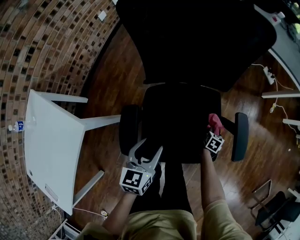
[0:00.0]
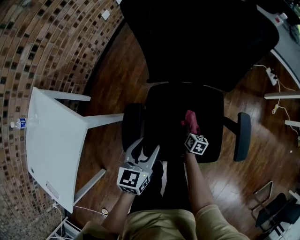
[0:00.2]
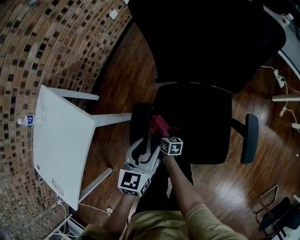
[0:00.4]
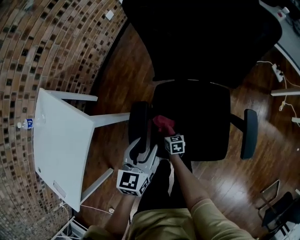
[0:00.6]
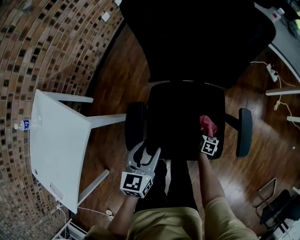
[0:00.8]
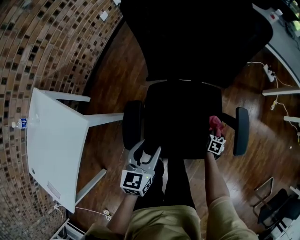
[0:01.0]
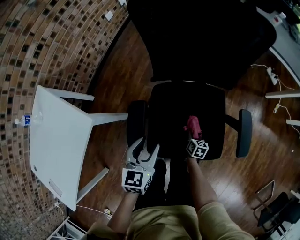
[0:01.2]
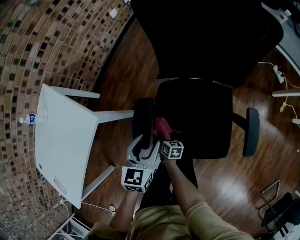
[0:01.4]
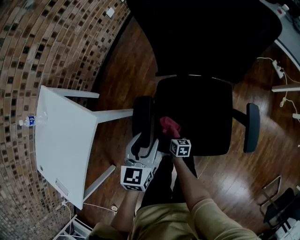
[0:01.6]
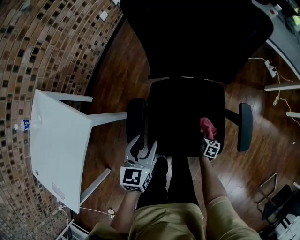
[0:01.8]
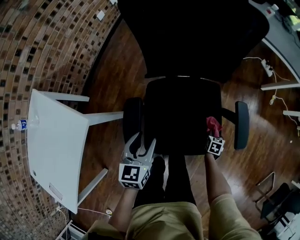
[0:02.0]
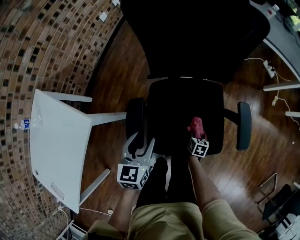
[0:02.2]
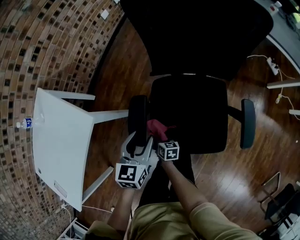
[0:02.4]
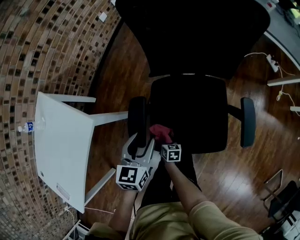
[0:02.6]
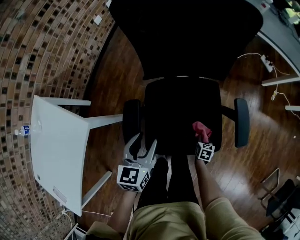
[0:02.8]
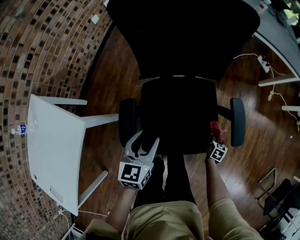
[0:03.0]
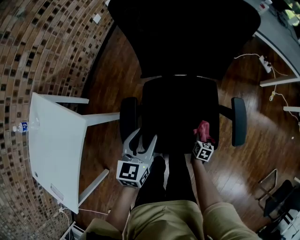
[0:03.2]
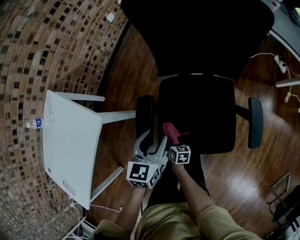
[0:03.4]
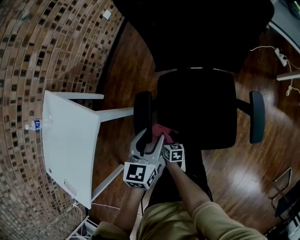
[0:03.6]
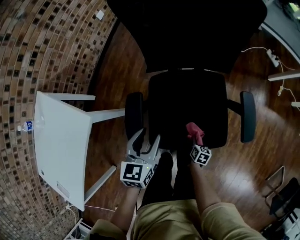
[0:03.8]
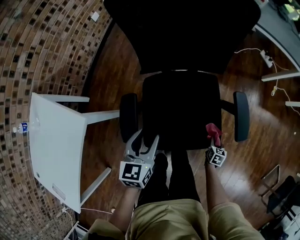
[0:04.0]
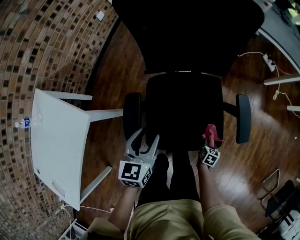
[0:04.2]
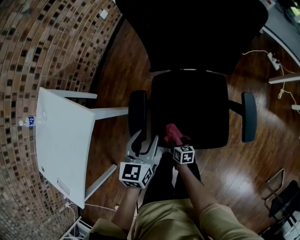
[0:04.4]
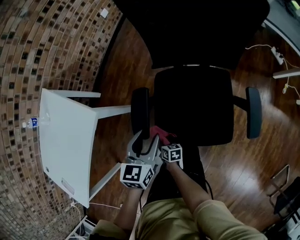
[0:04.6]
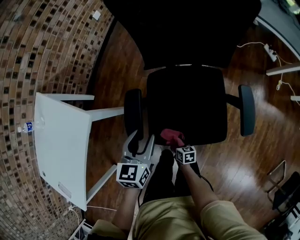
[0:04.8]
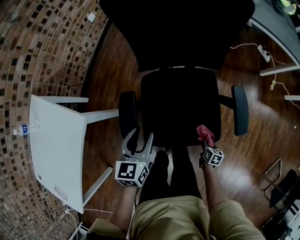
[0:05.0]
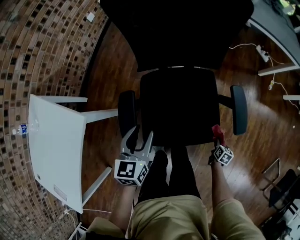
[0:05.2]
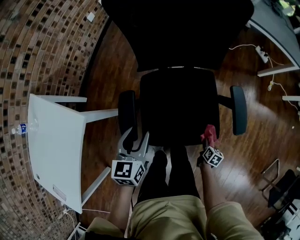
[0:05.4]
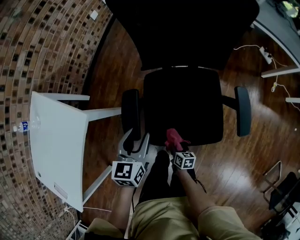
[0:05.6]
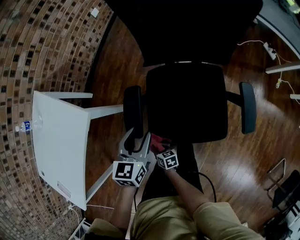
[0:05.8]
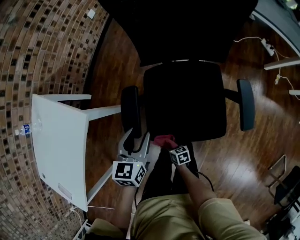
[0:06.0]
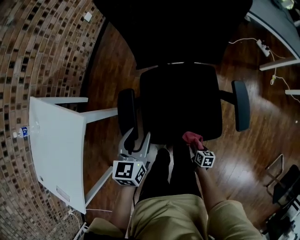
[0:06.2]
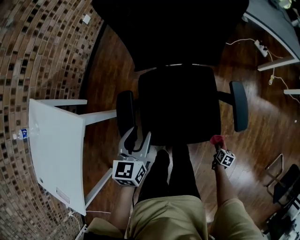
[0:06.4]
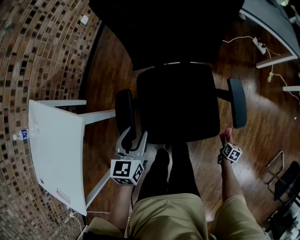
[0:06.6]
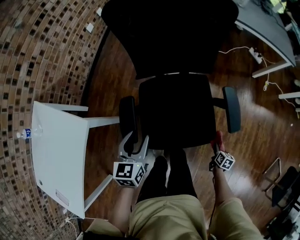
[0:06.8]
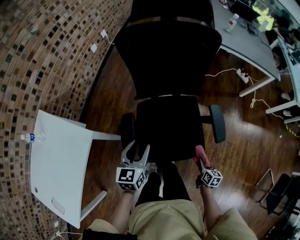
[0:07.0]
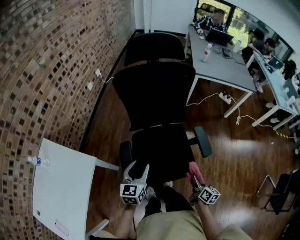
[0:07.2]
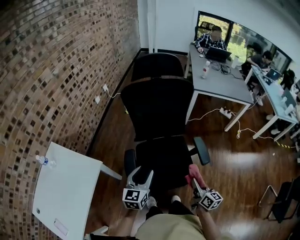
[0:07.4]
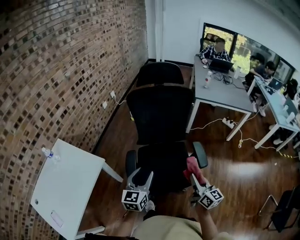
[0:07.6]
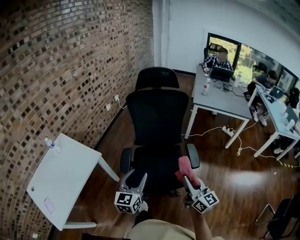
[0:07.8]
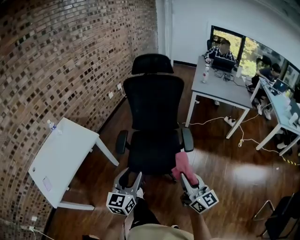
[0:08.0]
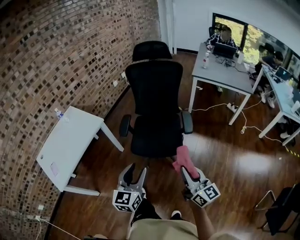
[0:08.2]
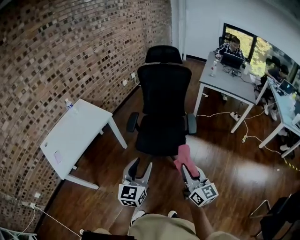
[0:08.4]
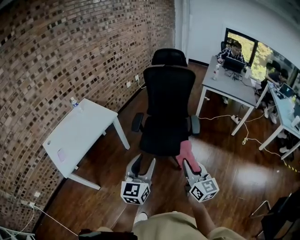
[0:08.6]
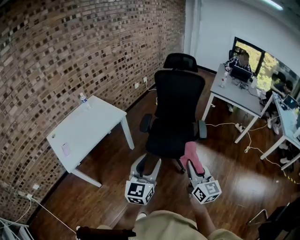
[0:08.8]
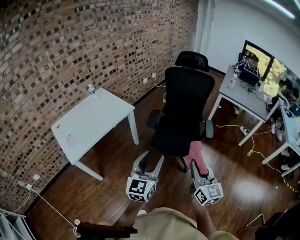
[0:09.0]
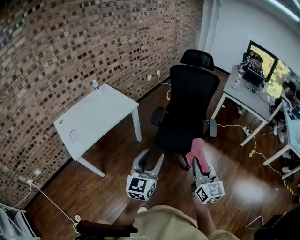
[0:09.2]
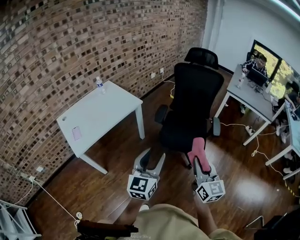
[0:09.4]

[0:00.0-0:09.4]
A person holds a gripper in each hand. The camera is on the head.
0:00.0 to 0:01.6: The left gripper shifts by approximately 5 cm, while the right gripper moves some 35 cm, and swivels about 40 degrees.
0:01.6 to 0:03.2: The left gripper shifts by roughly 5 cm. The right gripper rotates roughly 30 degrees.
0:03.2 to 0:04.8: The right gripper ends up roughly 20 cm from where it was, and turns by about 30 degrees, while the left gripper moves approximately 5 cm.
0:06.2 to 0:07.8: The left gripper travels upward and backward by approximately 30 cm, and swivels some 30 degrees. The right gripper travels upward by some 60 cm, and angles its fingers upward, by some 60 degrees.
0:07.8 to 0:09.4: The right gripper moves backward and to the left, approximately 25 cm. Meanwhile the left gripper shifts roughly 30 cm backward.

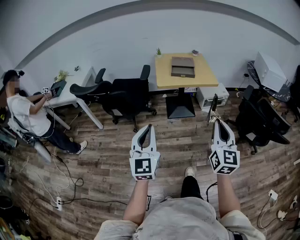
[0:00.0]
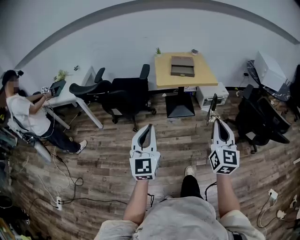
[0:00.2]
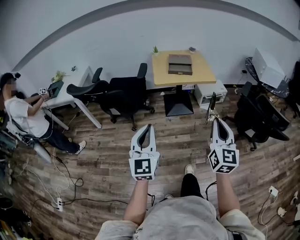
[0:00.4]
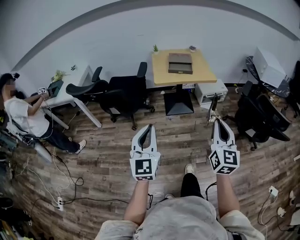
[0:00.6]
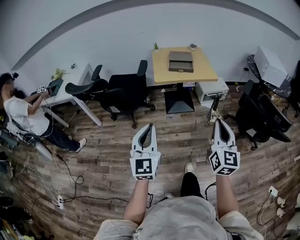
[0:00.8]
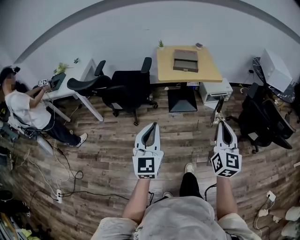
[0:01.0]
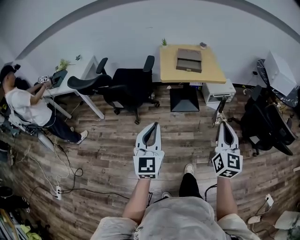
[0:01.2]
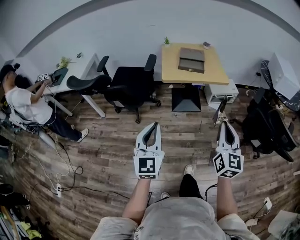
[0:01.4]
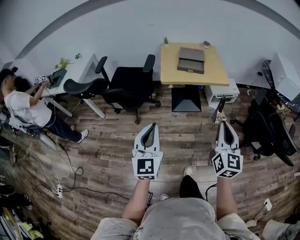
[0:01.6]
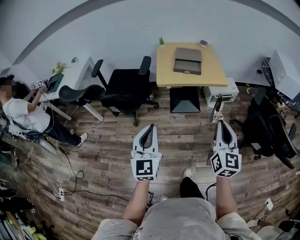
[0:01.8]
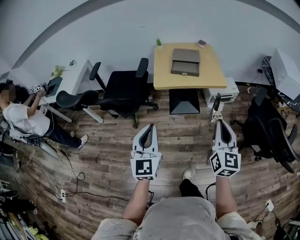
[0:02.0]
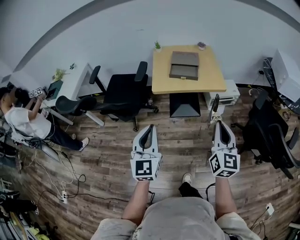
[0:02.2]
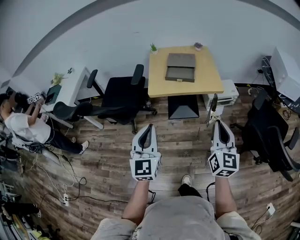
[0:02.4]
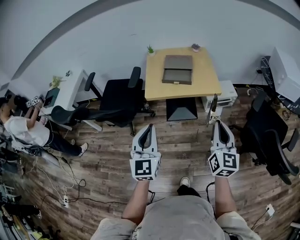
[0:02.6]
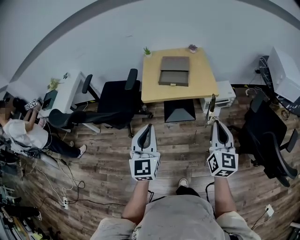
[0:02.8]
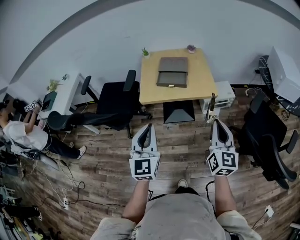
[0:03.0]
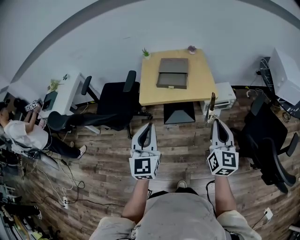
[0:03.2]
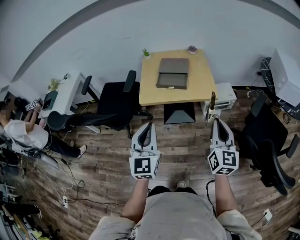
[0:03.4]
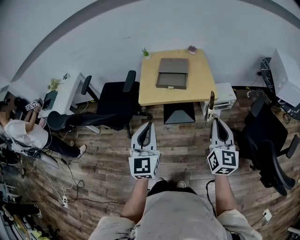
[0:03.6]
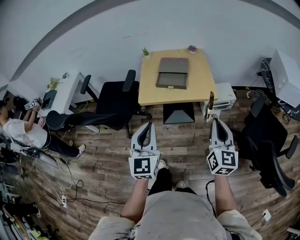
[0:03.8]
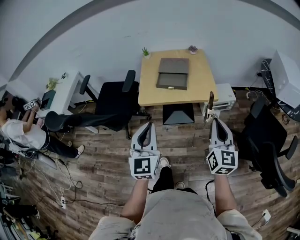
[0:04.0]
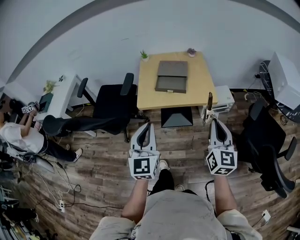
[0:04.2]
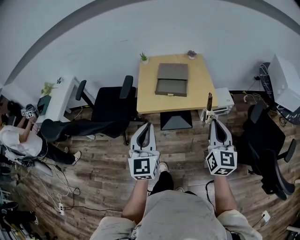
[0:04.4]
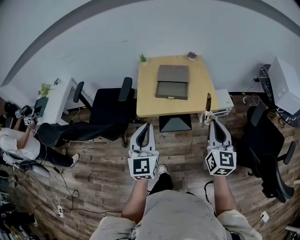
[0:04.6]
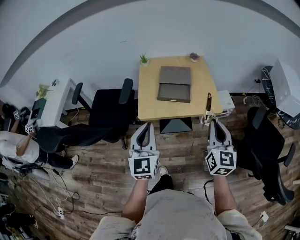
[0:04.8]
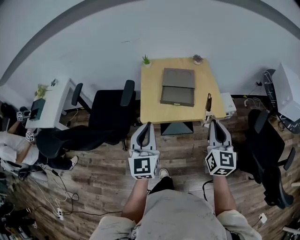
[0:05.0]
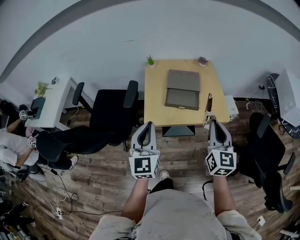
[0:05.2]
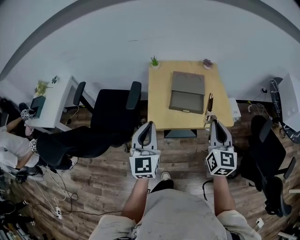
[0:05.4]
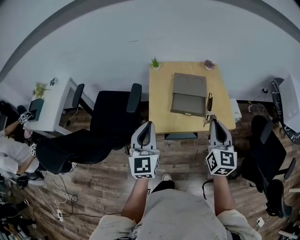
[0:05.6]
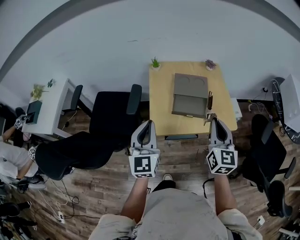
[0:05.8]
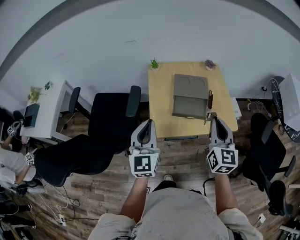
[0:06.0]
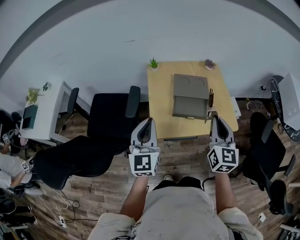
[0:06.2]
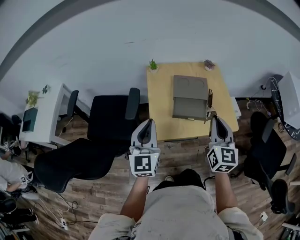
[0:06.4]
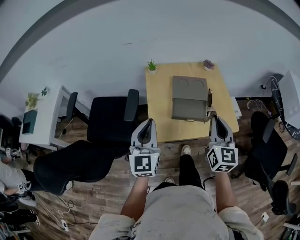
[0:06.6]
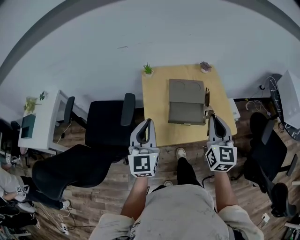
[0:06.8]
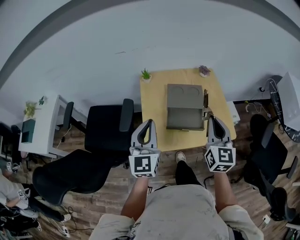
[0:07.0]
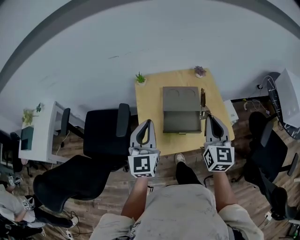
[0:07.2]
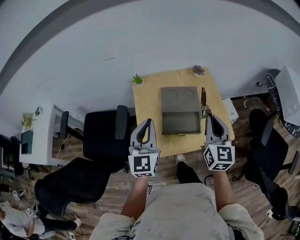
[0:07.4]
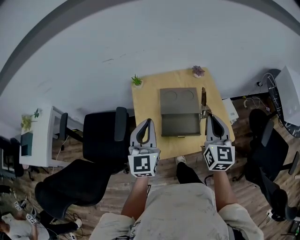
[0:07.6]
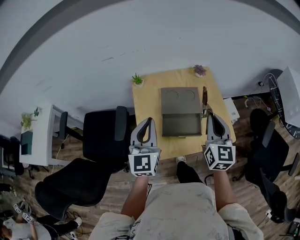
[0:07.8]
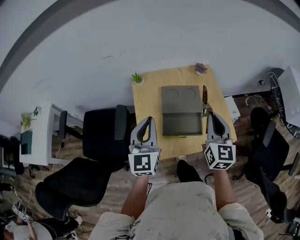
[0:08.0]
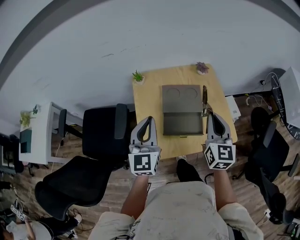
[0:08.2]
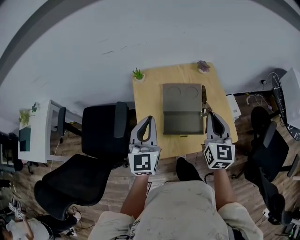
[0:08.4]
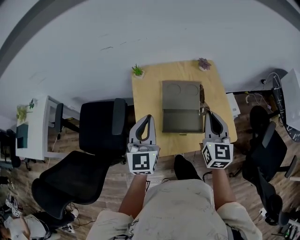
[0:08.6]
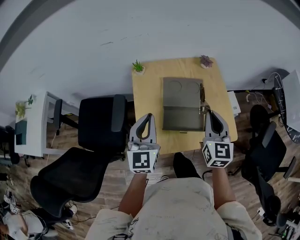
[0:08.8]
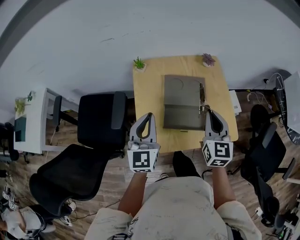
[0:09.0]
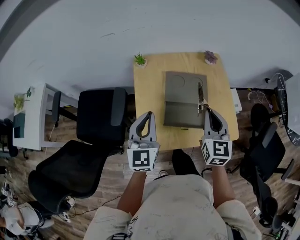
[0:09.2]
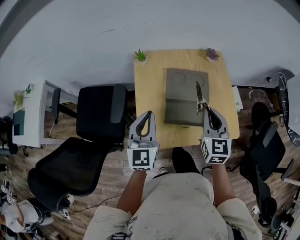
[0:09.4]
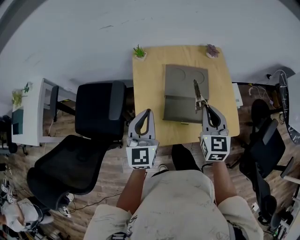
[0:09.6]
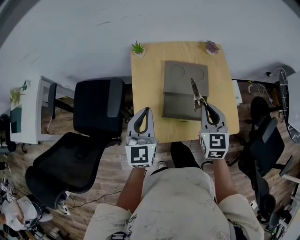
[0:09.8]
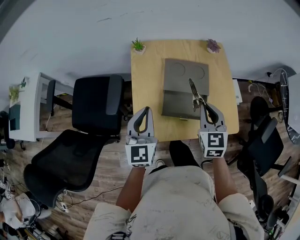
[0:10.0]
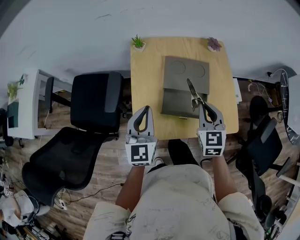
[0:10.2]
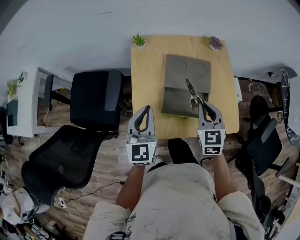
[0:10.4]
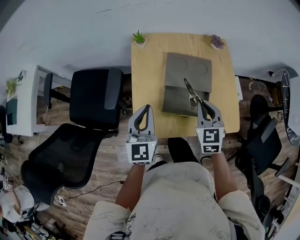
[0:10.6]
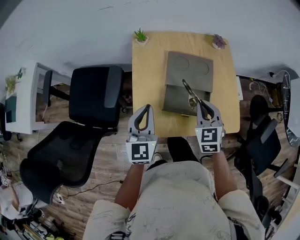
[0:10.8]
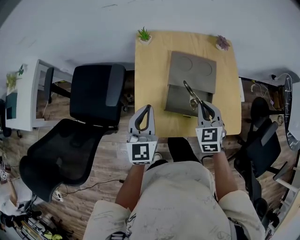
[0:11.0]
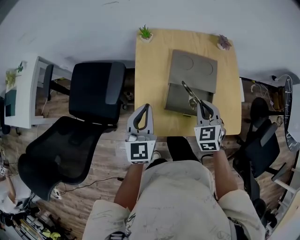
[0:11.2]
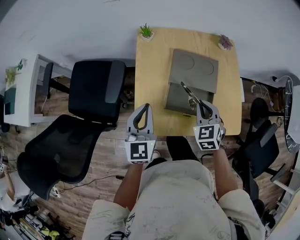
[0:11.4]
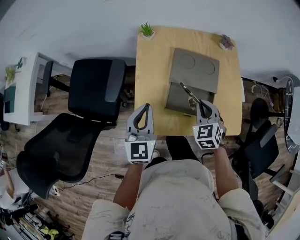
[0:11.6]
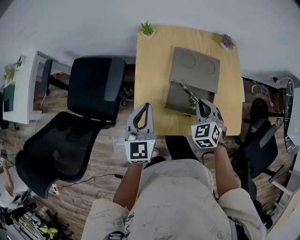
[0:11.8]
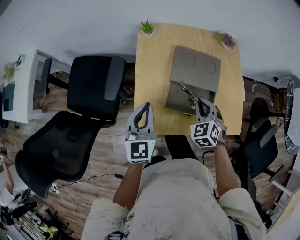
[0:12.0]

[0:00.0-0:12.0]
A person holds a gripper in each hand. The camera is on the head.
0:00.0 to 0:01.6: The two grippers go approximately 10 cm forward.
0:01.6 to 0:03.0: The grippers both shift forward and to the right by about 25 cm.
0:03.0 to 0:04.4: The grippers both shift forward by roughly 10 cm.
0:04.4 to 0:06.0: The grippers both shift forward and to the left by some 30 cm.
0:06.0 to 0:07.6: The left gripper shifts roughly 15 cm forward and to the right. The right gripper shifts some 15 cm forward.
0:07.6 to 0:09.0: The two grippers go some 5 cm downward.
0:09.0 to 0:10.4: Both grippers travel together downward, approximately 5 cm. The right gripper changes its angle by approximately 20 degrees.
0:10.4 to 0:12.0: The right gripper is displaced downward by some 10 cm, and changes its angle by approximately 30 degrees.

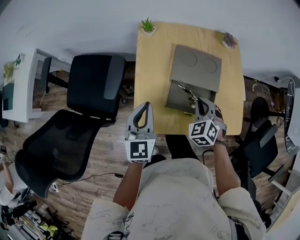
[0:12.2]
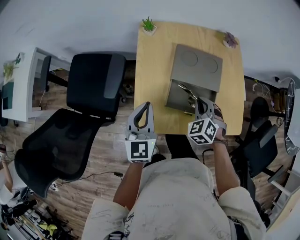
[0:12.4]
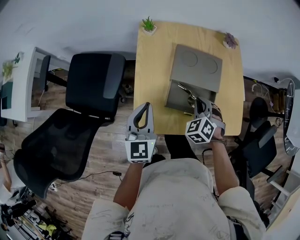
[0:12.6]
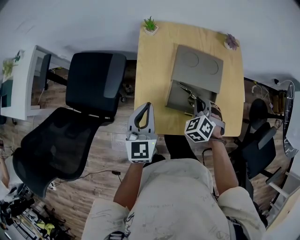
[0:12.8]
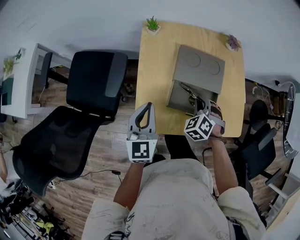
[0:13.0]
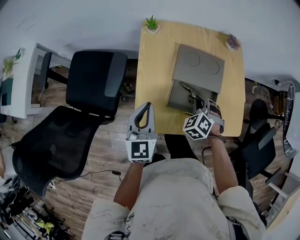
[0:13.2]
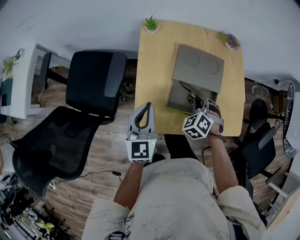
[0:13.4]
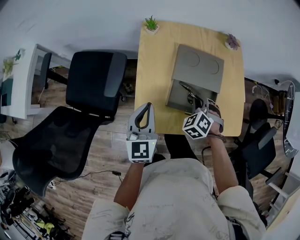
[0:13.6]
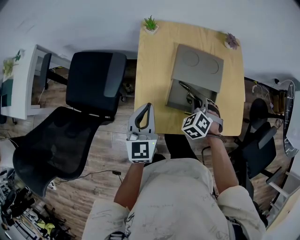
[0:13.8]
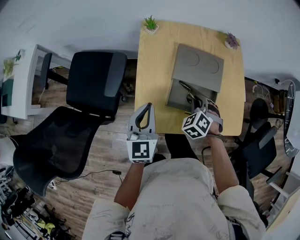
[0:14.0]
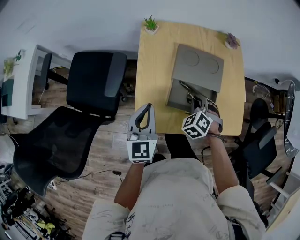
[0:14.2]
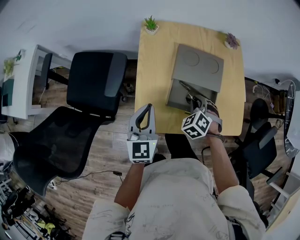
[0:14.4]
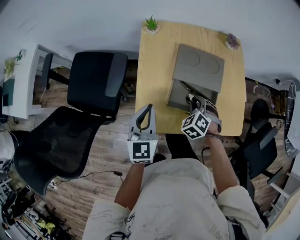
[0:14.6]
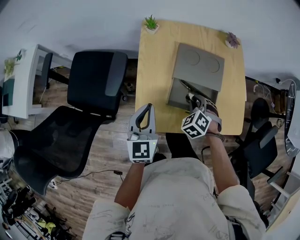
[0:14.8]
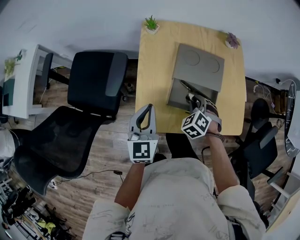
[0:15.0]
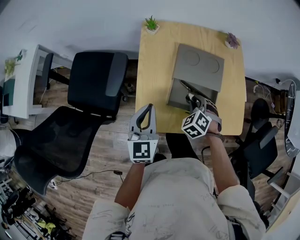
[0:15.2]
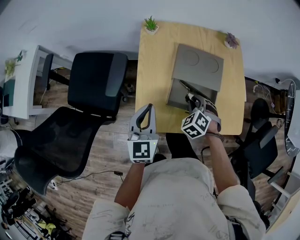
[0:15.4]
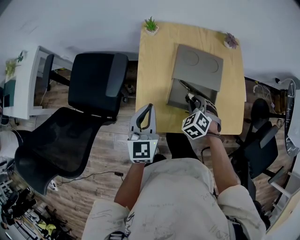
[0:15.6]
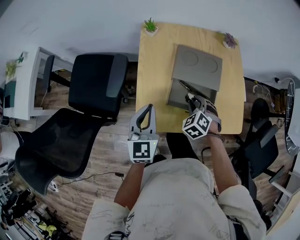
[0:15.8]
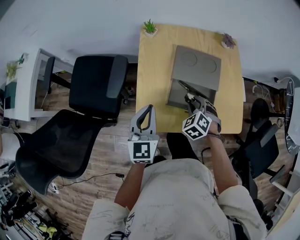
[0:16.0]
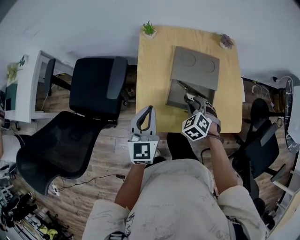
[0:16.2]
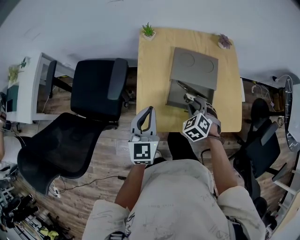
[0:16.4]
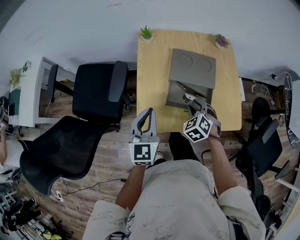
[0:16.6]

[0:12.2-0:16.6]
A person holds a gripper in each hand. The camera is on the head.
0:12.2 to 0:16.6: The grippers make only small movements.
